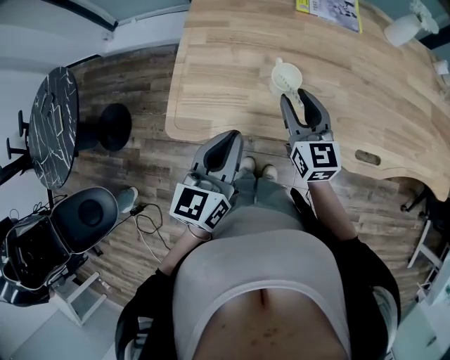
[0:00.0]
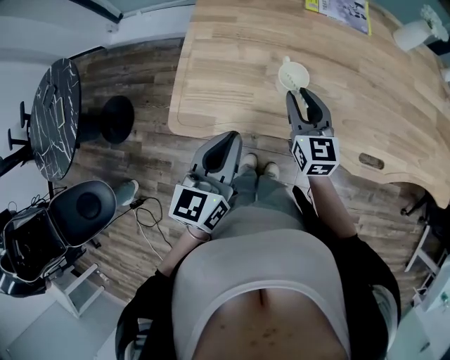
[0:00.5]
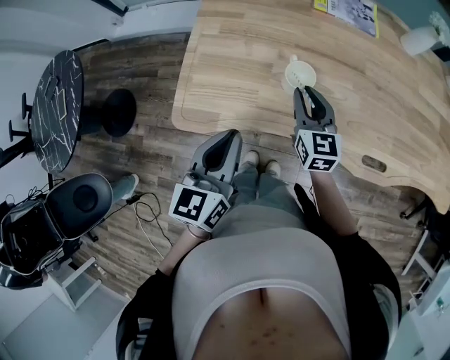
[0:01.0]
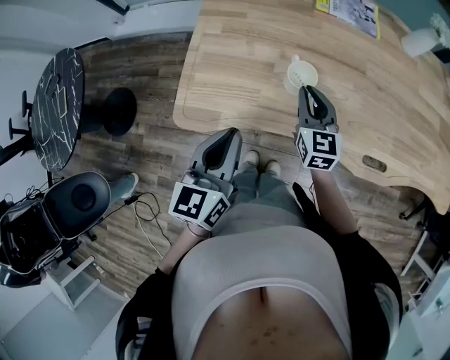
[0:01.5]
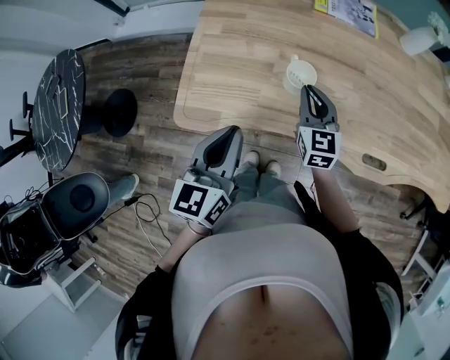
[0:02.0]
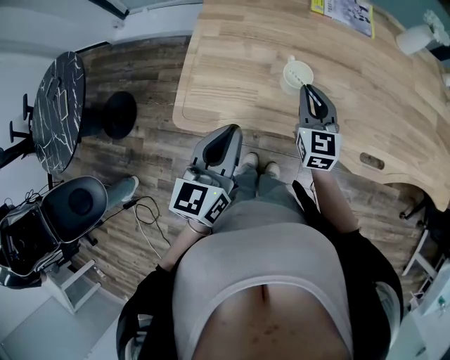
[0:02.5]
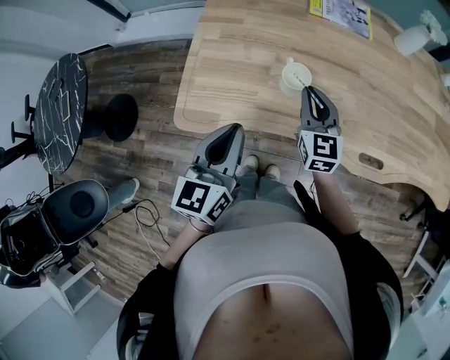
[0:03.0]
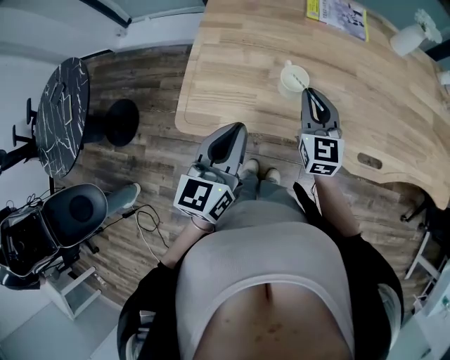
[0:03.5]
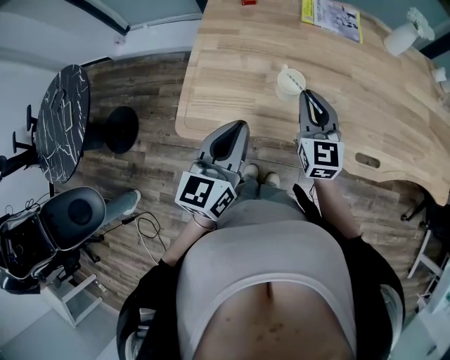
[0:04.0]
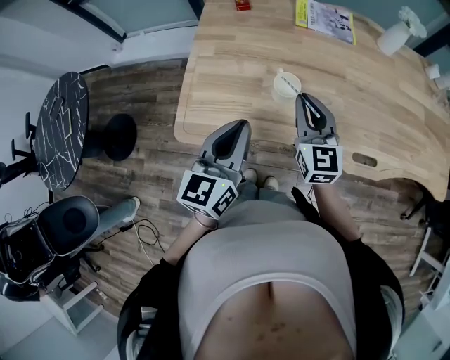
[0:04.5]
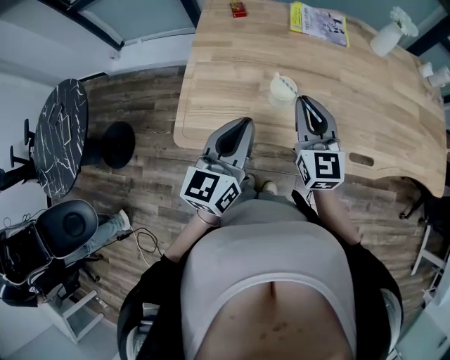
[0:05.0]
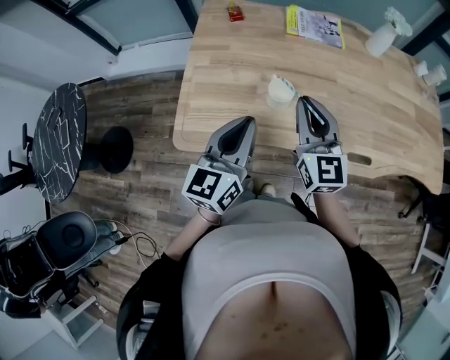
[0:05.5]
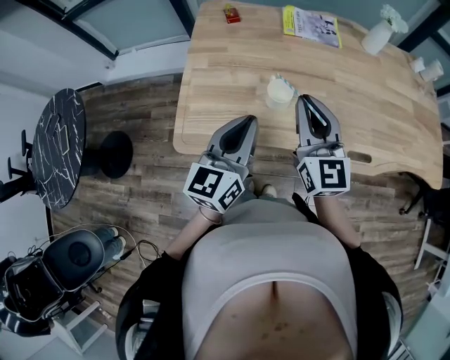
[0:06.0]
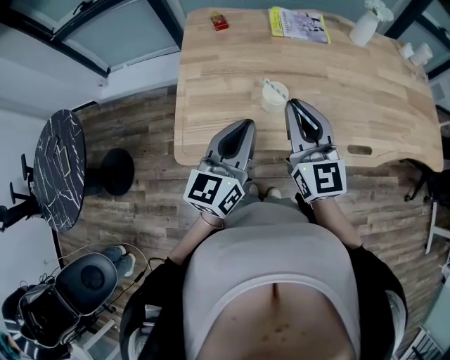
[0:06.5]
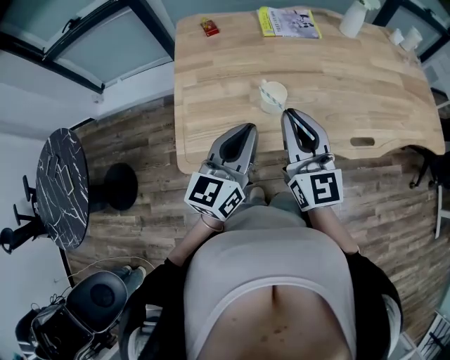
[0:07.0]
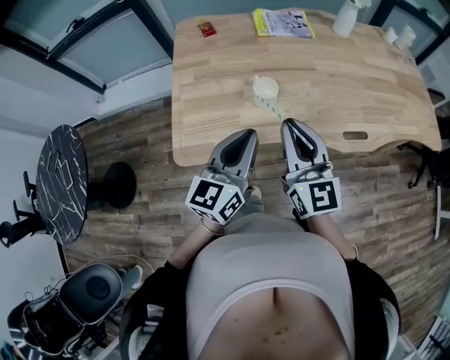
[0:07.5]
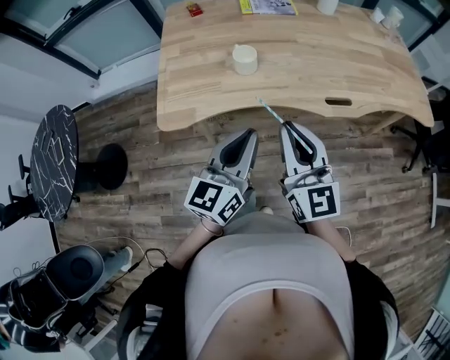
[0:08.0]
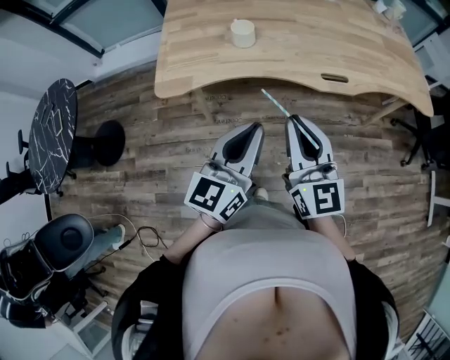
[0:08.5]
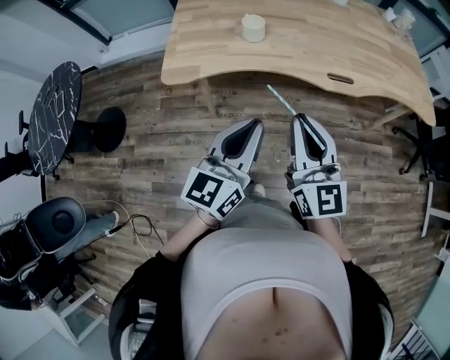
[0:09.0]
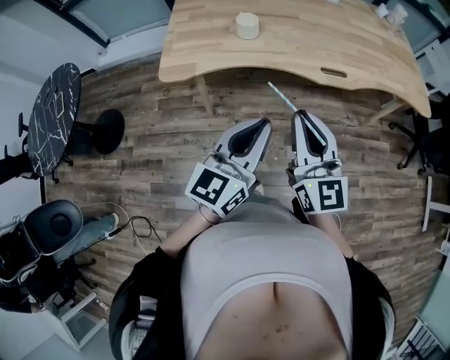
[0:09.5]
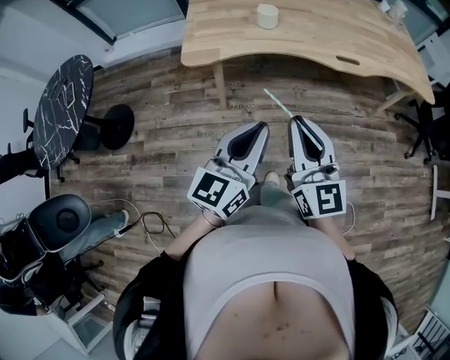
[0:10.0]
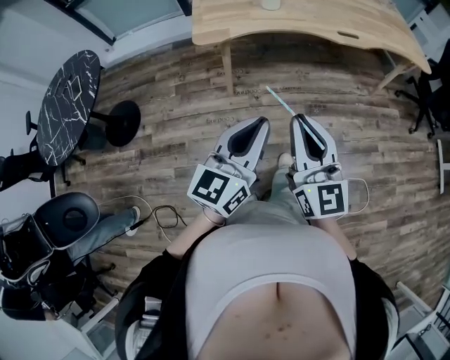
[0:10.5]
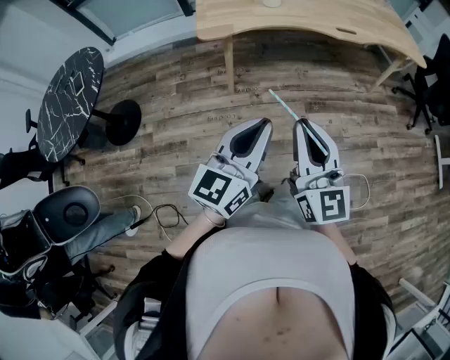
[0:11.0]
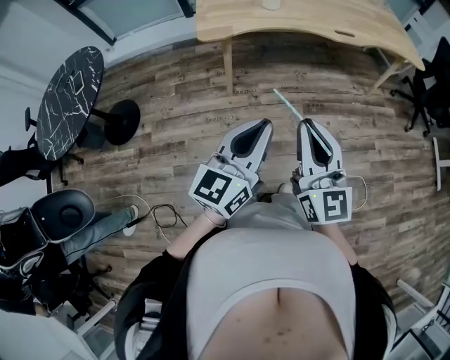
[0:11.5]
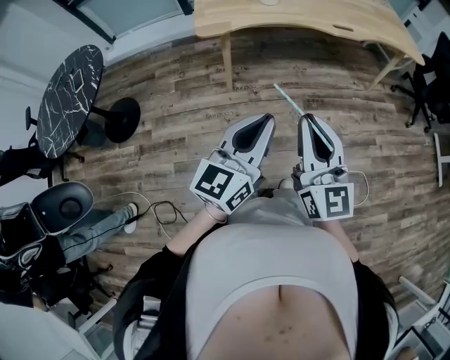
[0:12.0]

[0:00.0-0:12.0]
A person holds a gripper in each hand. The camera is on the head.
0:00.0 to 0:02.0: The right gripper moves some 5 cm, and closes up.
0:02.0 to 0:04.0: The right gripper heads upward, covering roughly 10 cm.
0:04.0 to 0:06.0: The right gripper travels upward by about 10 cm.
0:06.0 to 0:08.0: The left gripper travels backward and to the right by some 20 cm; the right gripper heads backward, covering roughly 20 cm.
0:08.0 to 0:10.0: The two grippers go roughly 20 cm backward.
0:10.0 to 0:12.0: Both grippers move backward, approximately 20 cm.

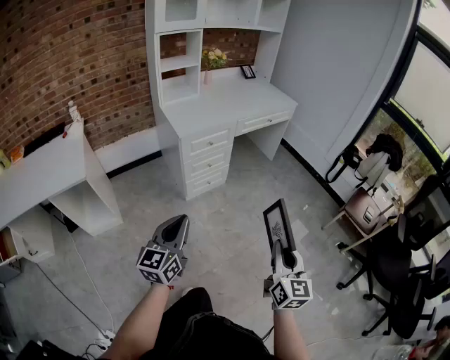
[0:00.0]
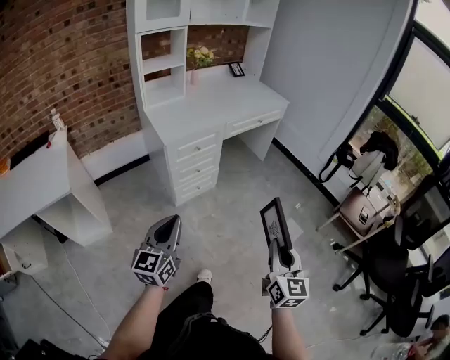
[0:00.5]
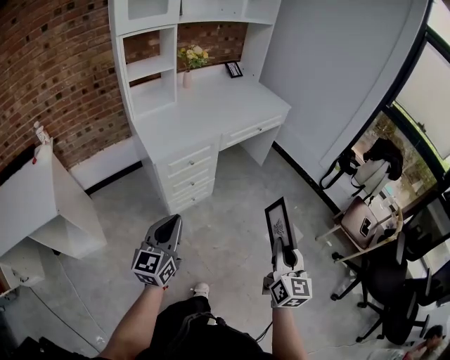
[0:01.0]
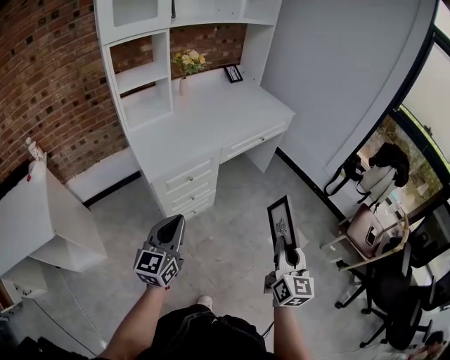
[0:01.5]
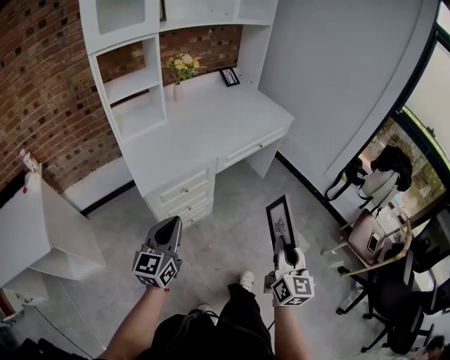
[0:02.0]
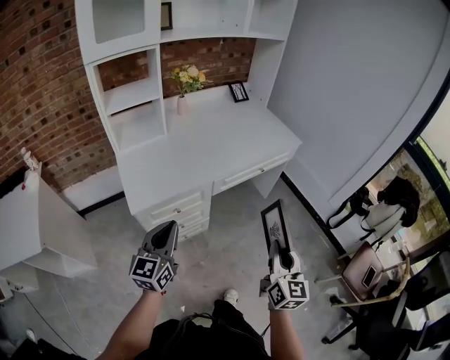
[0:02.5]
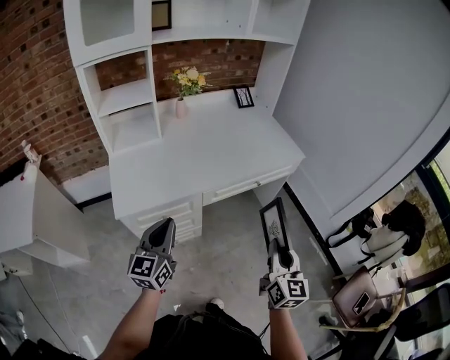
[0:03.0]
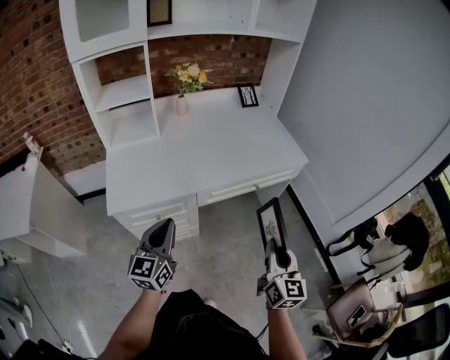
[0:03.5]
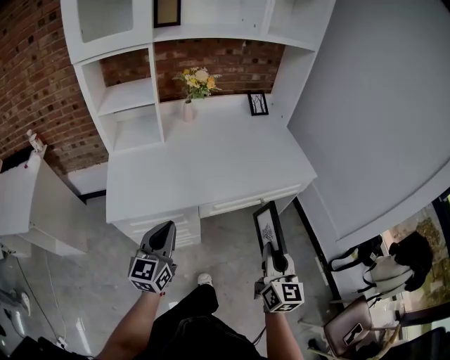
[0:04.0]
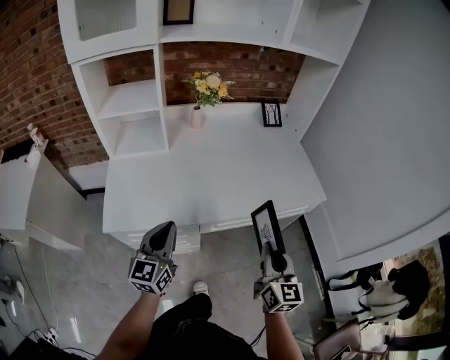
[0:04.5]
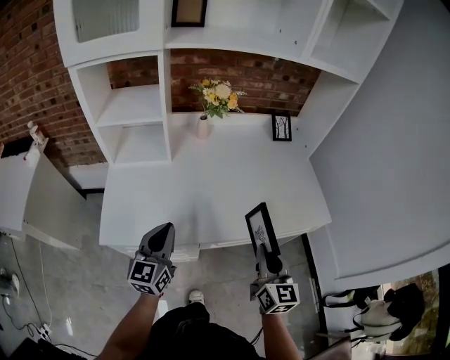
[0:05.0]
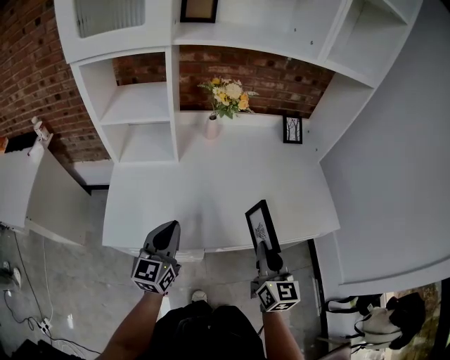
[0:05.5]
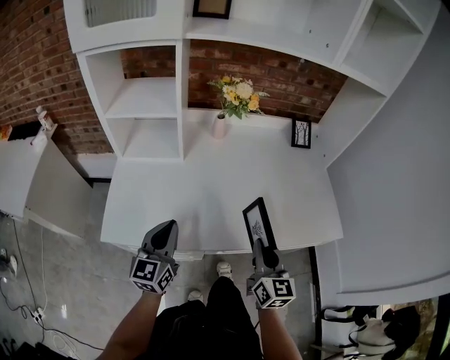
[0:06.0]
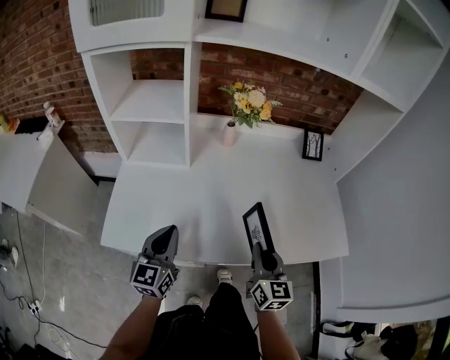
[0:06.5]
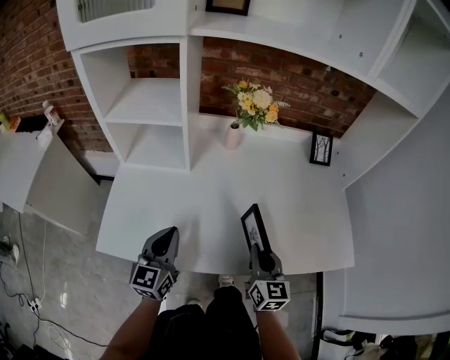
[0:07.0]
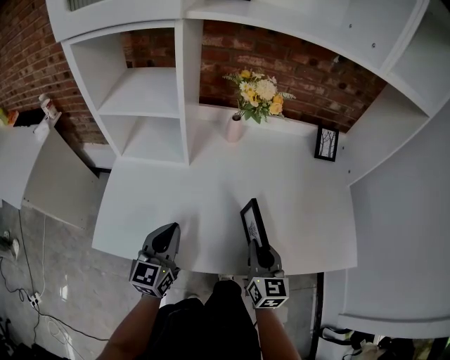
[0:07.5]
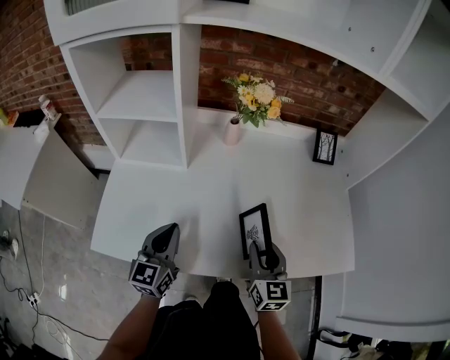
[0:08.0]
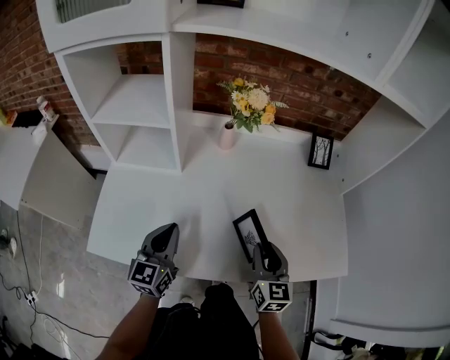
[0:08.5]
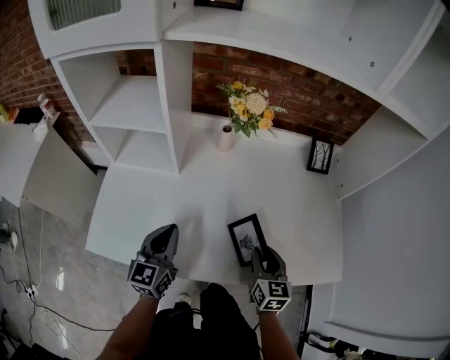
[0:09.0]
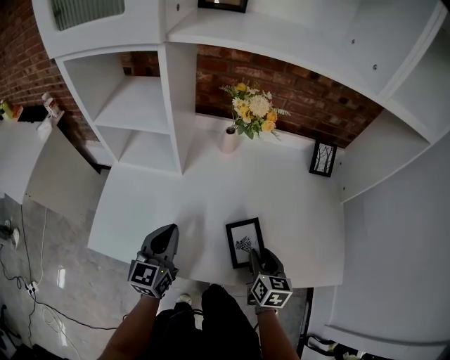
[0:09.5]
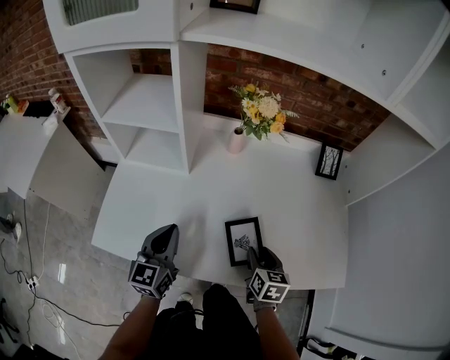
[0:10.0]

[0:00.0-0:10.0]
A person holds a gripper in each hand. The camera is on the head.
0:00.0 to 0:02.0: Both grippers move forward, approximately 35 cm.
0:02.0 to 0:04.0: The right gripper heads forward, covering roughly 30 cm, and rotates some 20 degrees. Meanwhile the left gripper travels forward and to the right by approximately 25 cm, and turns by approximately 20 degrees.
0:04.0 to 0:06.0: Both grippers move forward, approximately 20 cm.
0:06.0 to 0:08.0: The right gripper heads forward and downward, covering roughly 10 cm, and opens its fingers. The left gripper goes some 5 cm forward.
0:08.0 to 0:10.0: The right gripper heads downward, covering about 5 cm, and turns by roughly 30 degrees.

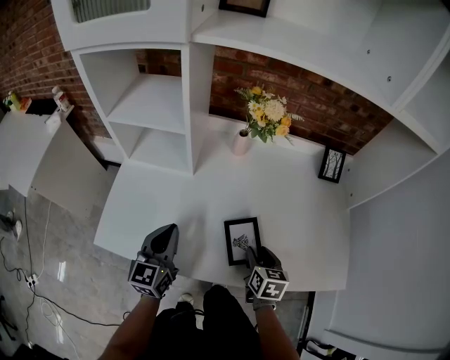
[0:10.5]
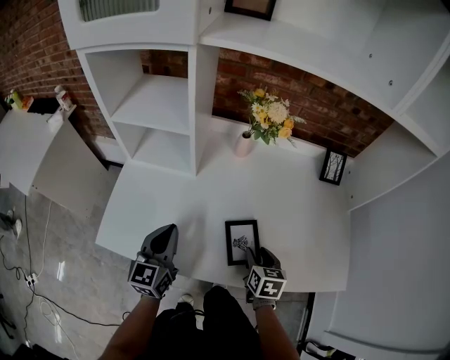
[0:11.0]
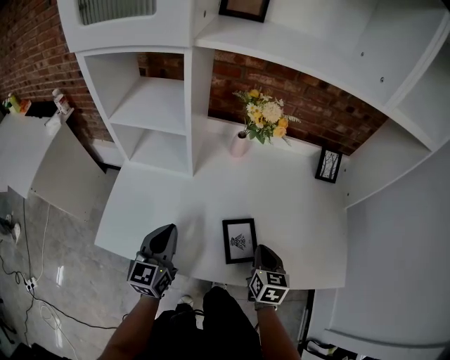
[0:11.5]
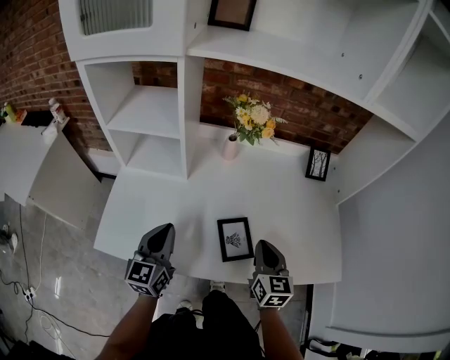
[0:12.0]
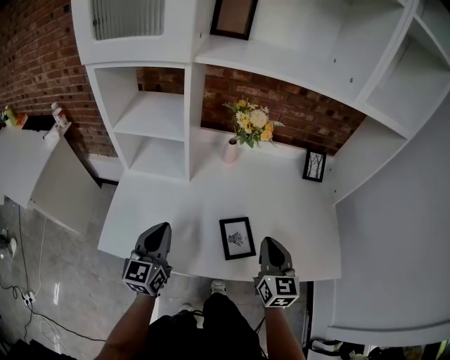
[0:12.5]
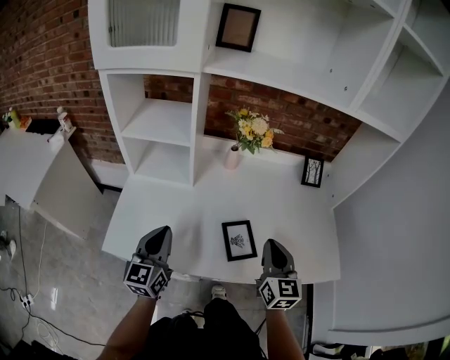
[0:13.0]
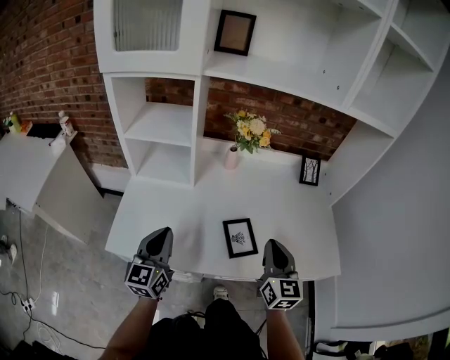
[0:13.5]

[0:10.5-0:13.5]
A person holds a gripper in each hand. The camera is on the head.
0:10.5 to 0:12.0: The right gripper shifts approximately 10 cm upward, turns by about 30 degrees, and closes up.
0:12.0 to 0:13.5: The right gripper goes about 10 cm upward. Meanwhile the left gripper changes place by about 5 cm.

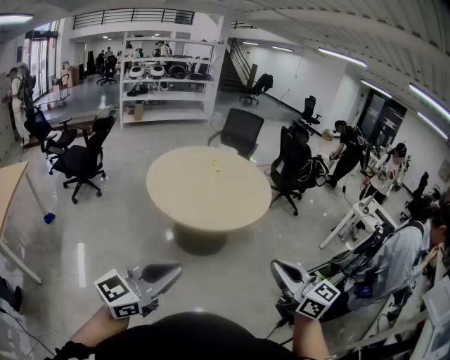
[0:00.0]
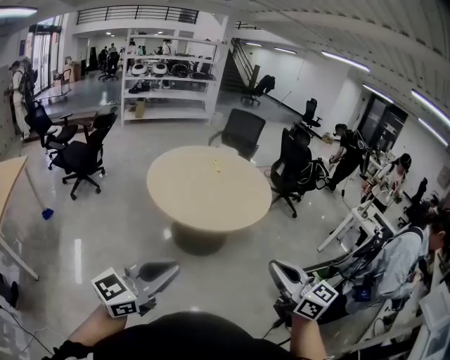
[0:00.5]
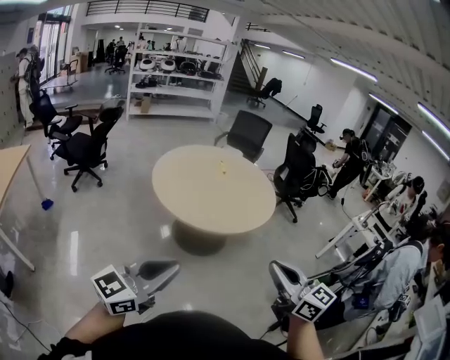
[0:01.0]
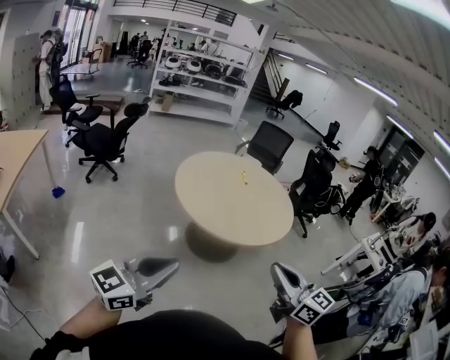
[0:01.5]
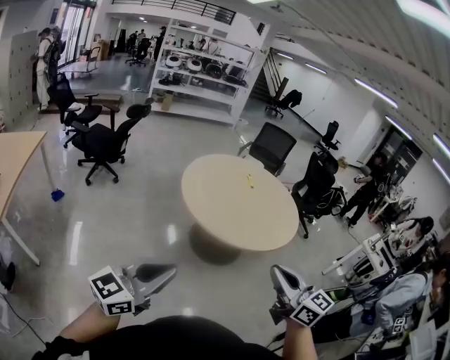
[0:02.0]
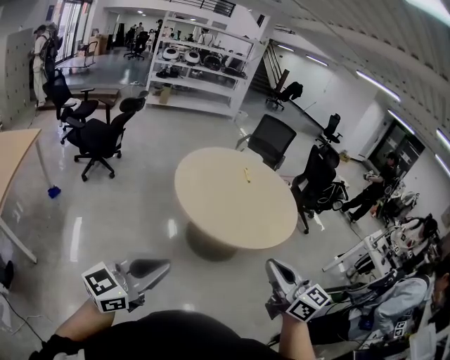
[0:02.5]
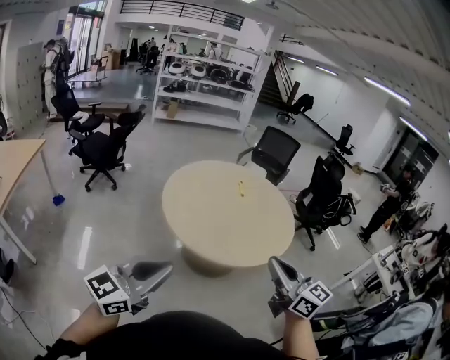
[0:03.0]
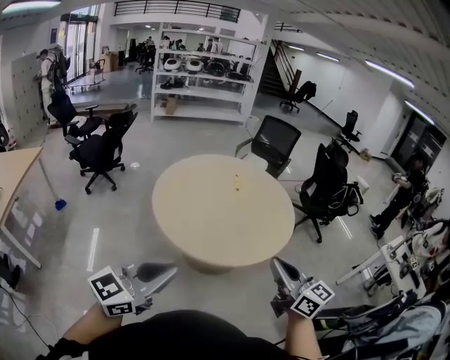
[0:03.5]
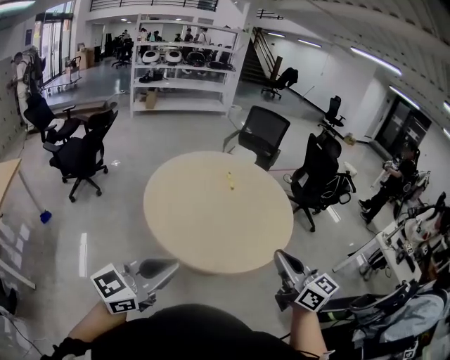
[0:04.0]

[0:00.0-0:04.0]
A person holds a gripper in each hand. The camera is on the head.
0:00.0 to 0:02.0: The grippers both shift to the left by approximately 25 cm.
0:02.0 to 0:04.0: Both grippers travel together forward and to the right, roughly 35 cm.
